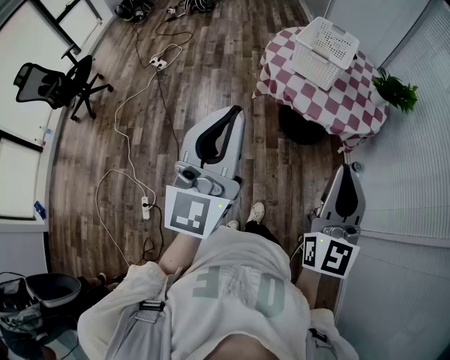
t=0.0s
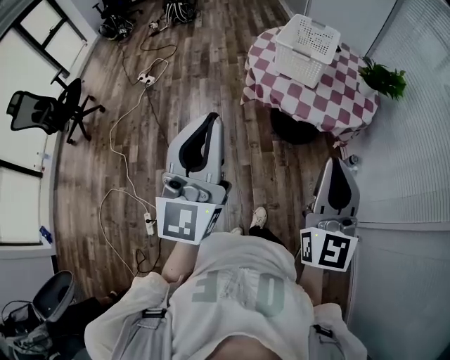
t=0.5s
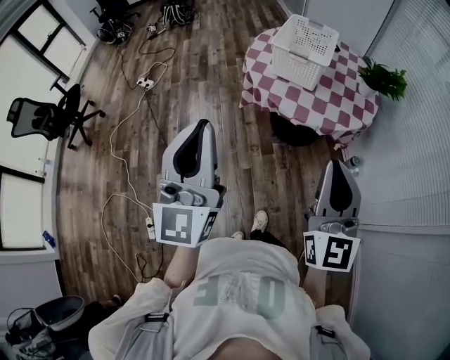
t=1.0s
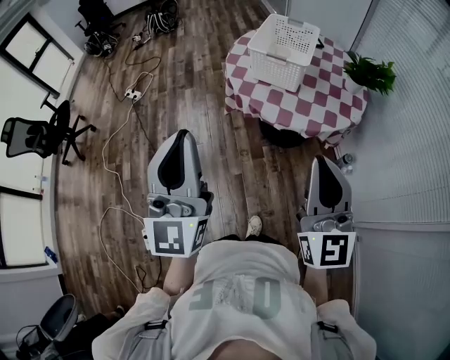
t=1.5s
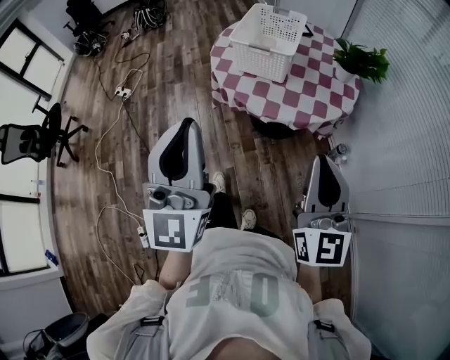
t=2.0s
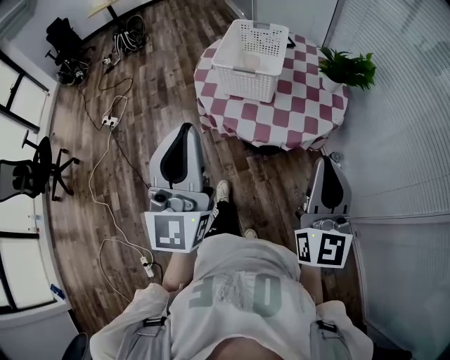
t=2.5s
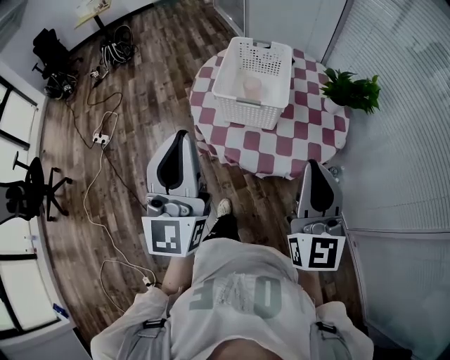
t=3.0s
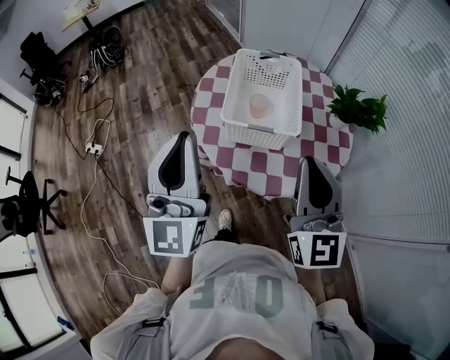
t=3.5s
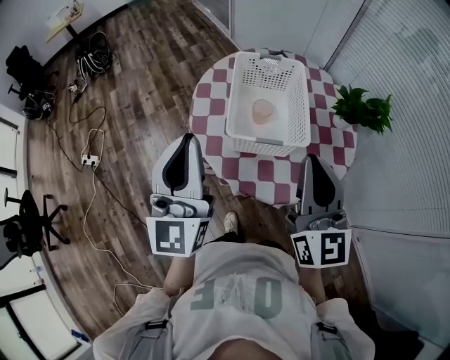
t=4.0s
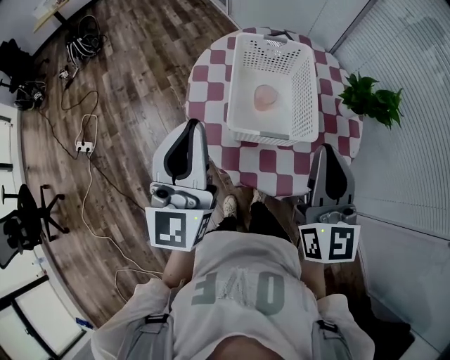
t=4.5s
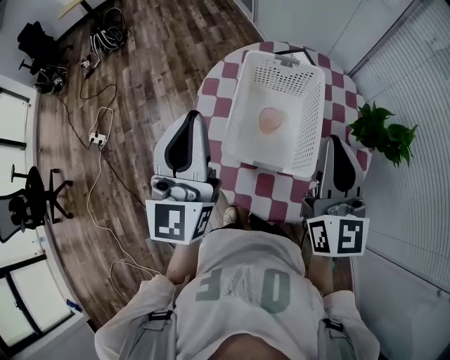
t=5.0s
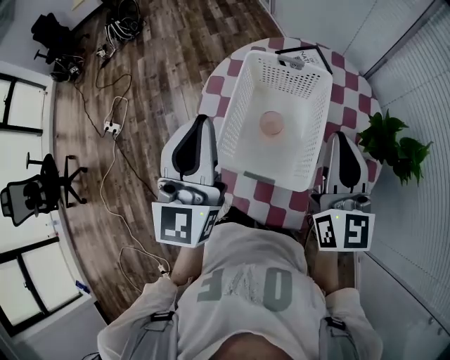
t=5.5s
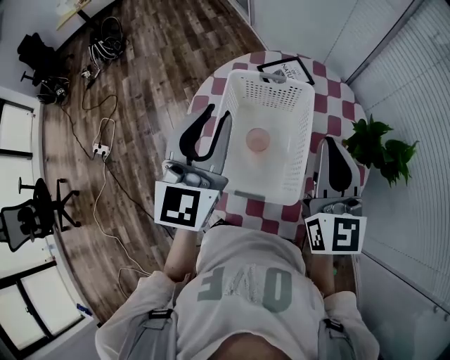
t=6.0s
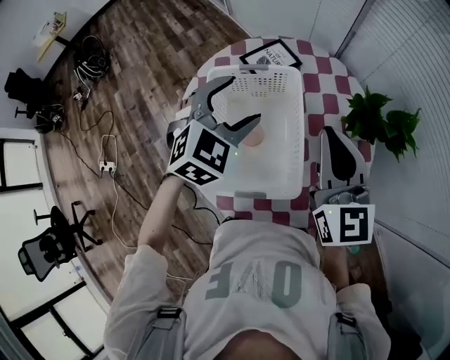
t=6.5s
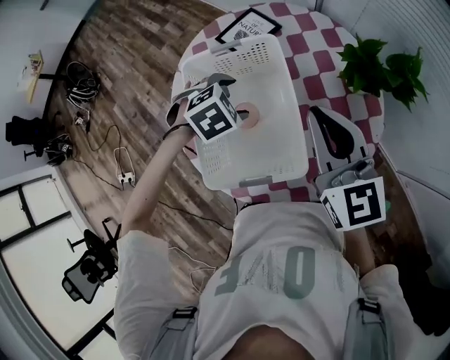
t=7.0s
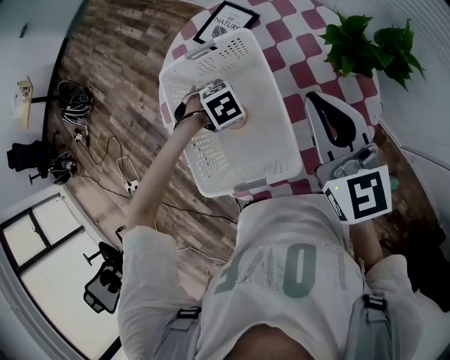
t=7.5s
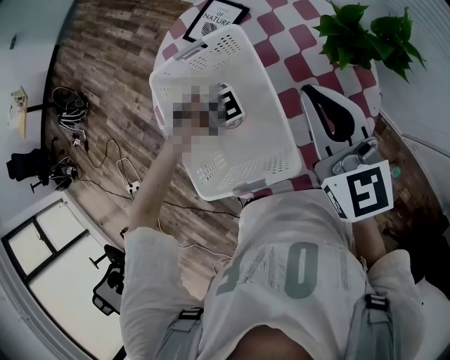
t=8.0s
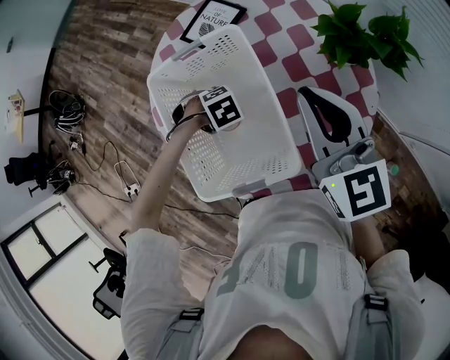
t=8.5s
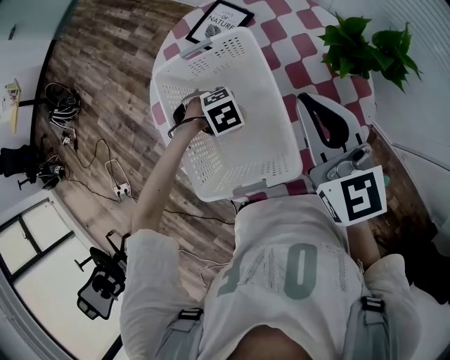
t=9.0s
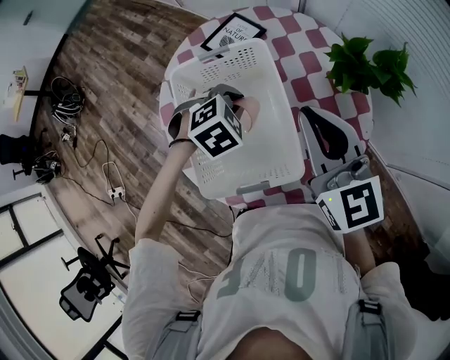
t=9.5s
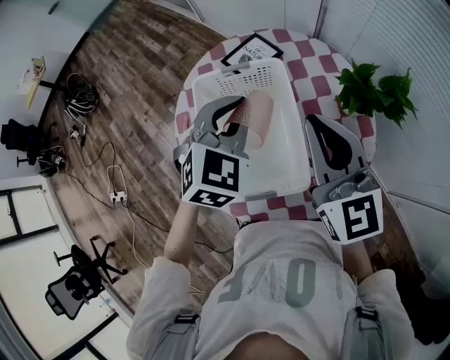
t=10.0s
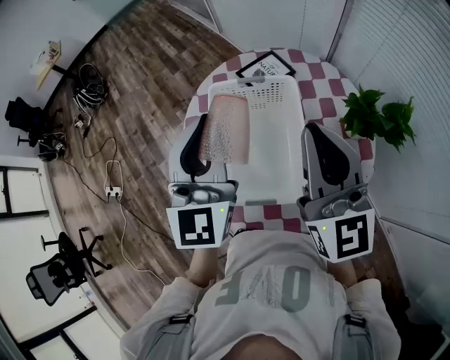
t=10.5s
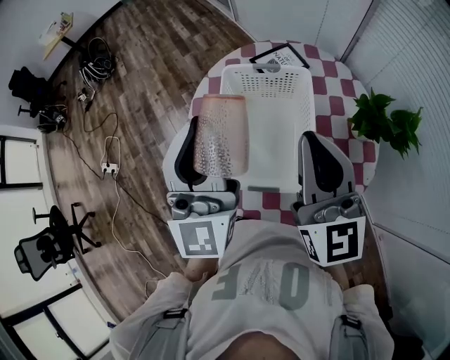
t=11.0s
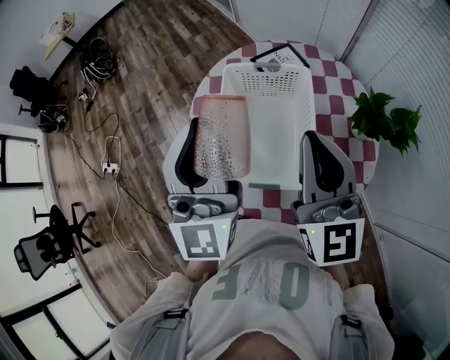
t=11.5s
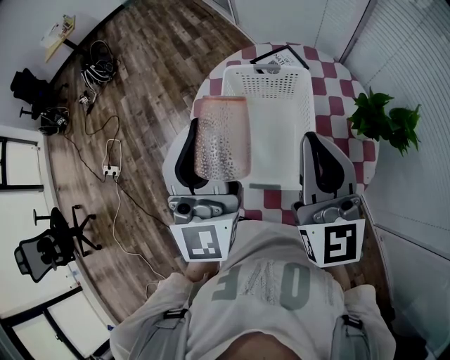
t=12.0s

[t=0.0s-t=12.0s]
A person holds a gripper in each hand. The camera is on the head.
t=0.0s to t=2.0s: The left gripper shifts roughly 15 cm forward and to the right; the right gripper goes about 15 cm to the right and forward.
t=2.0s to t=4.0s: The left gripper is displaced forward by approximately 40 cm. Meanwhile the right gripper travels forward and to the left by about 35 cm.
t=4.0s to t=6.0s: The two grippers go about 25 cm forward and to the right. The left gripper swivels about 20 degrees.
t=6.0s to t=8.0s: The right gripper goes roughly 10 cm downward, while the left gripper goes about 40 cm downward, angles its fingers downward, by approximately 80 degrees, and opens its fingers.
t=8.0s to t=10.0s: The left gripper goes some 30 cm upward, points its fingers roughly 50 degrees further upward, and closes its fingers. The right gripper travels upward by roughly 5 cm.
t=10.0s to t=12.0s: The right gripper heads to the left, covering approximately 5 cm, while the left gripper shifts approximately 20 cm upward, to the left and backward, and angles its fingers upward, by about 50 degrees.

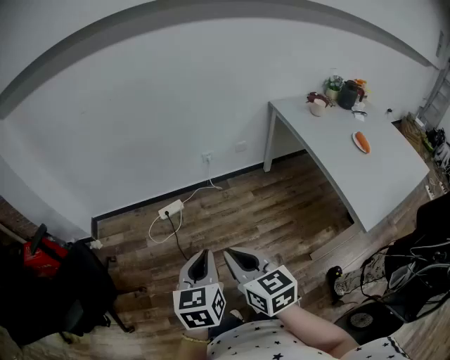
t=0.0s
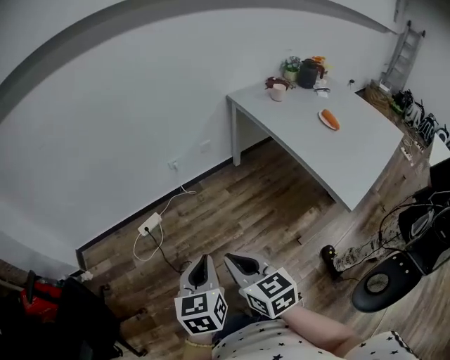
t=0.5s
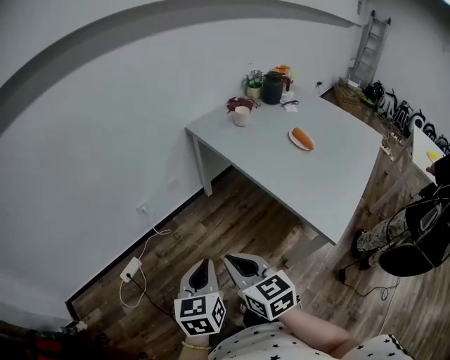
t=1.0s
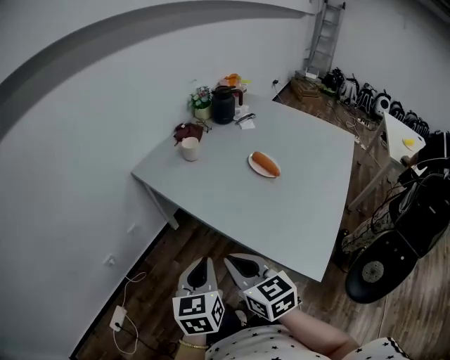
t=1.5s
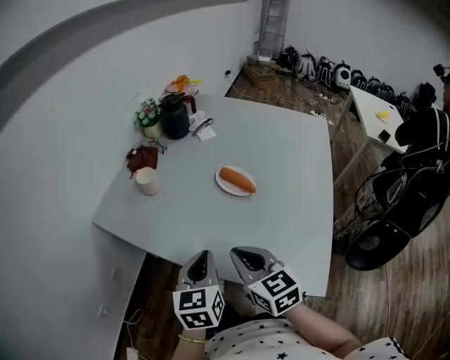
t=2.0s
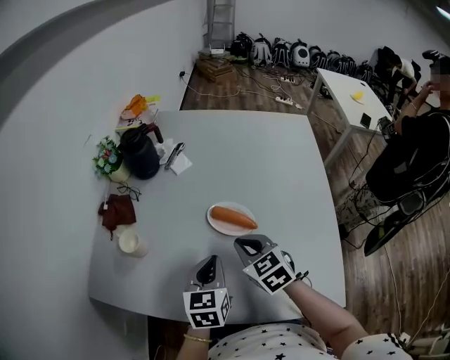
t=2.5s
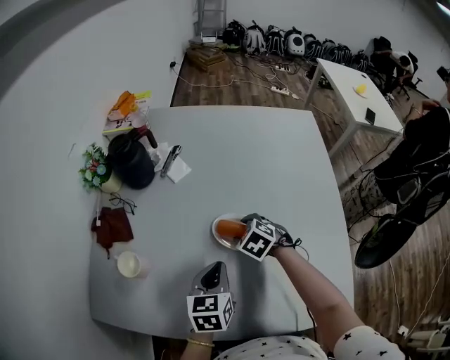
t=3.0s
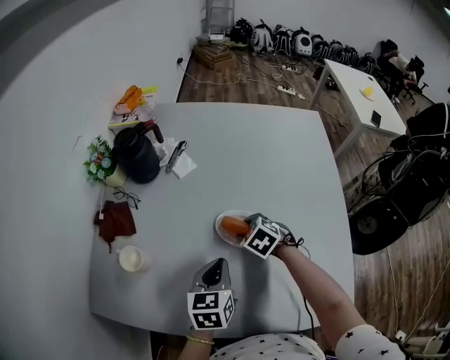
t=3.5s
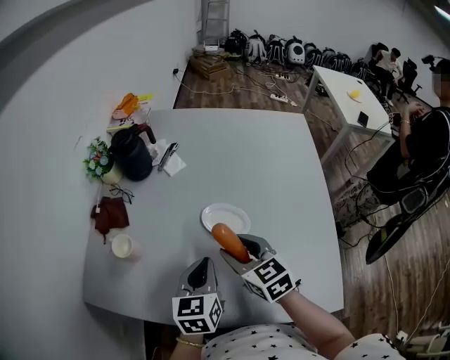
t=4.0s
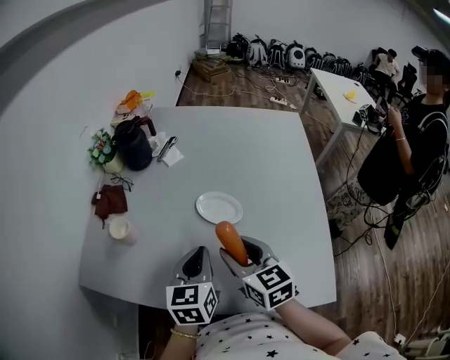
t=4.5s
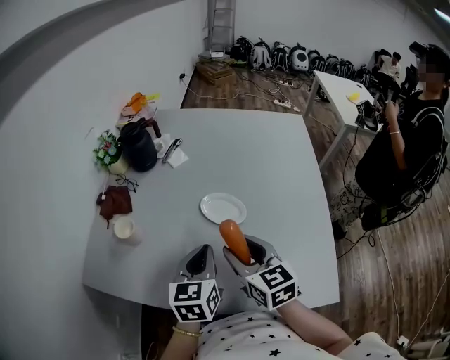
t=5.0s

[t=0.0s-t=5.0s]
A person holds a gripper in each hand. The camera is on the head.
t=0.0s to t=2.5s: The pair of grippers is taken roughly 90 cm. The right gripper swivels roughly 60 degrees. The left gripper turns by about 70 degrees.
t=2.5s to t=5.0s: The left gripper goes forward and returns, approximately 5 cm each way. Meanwhile the right gripper travels backward by some 5 cm, travels downward and back again, roughly 10 cm each way, swivels roughly 20 degrees, and opens.

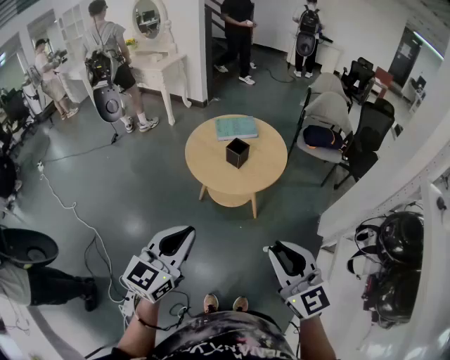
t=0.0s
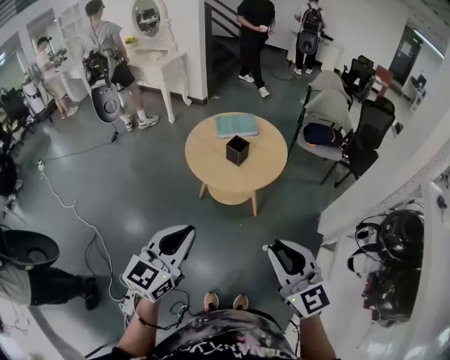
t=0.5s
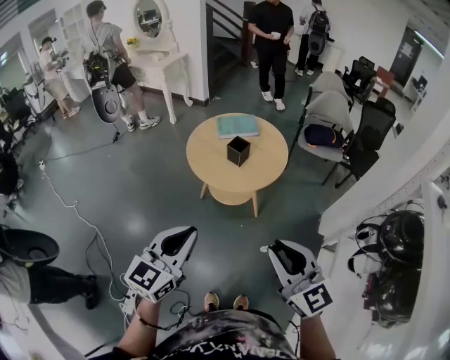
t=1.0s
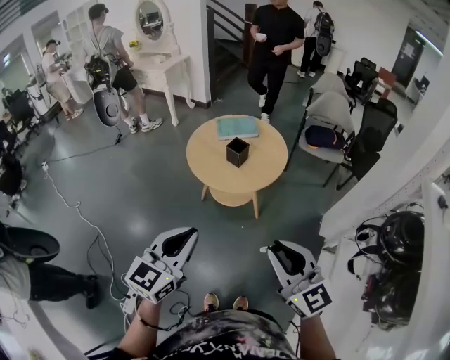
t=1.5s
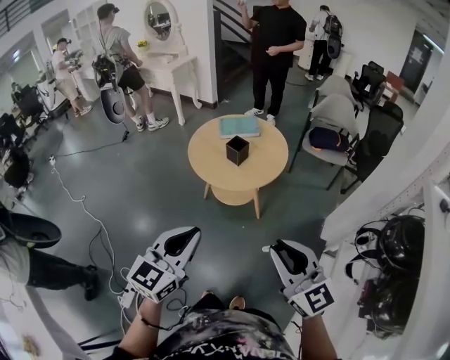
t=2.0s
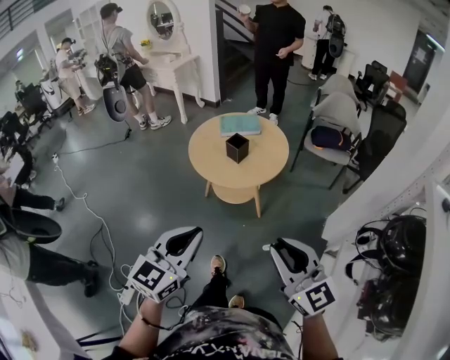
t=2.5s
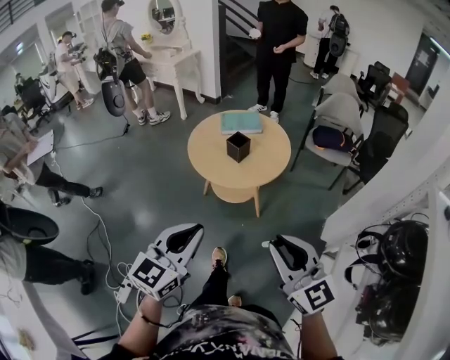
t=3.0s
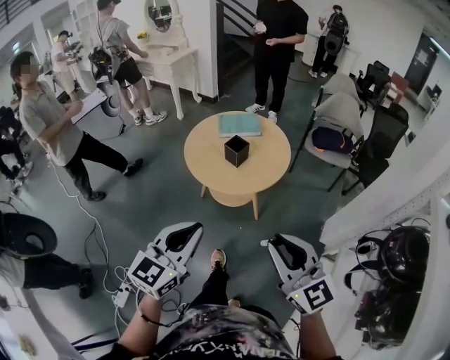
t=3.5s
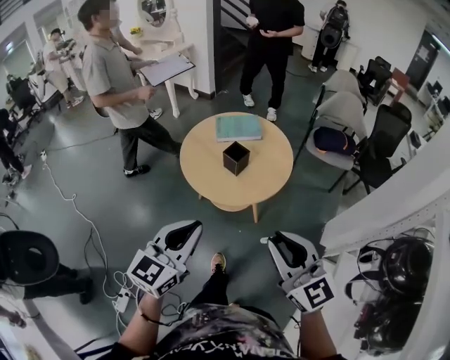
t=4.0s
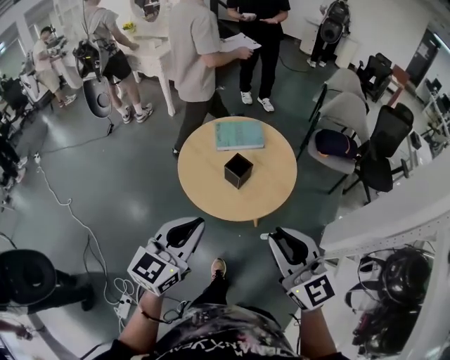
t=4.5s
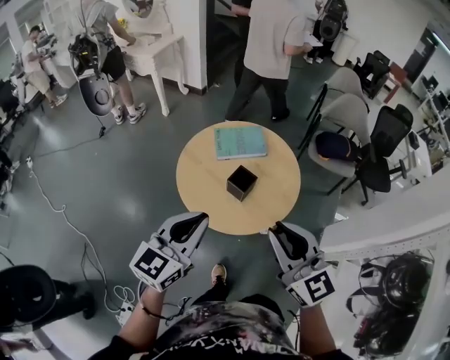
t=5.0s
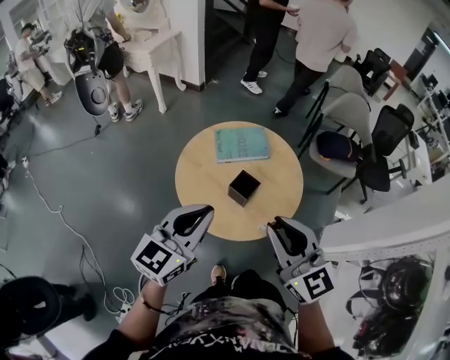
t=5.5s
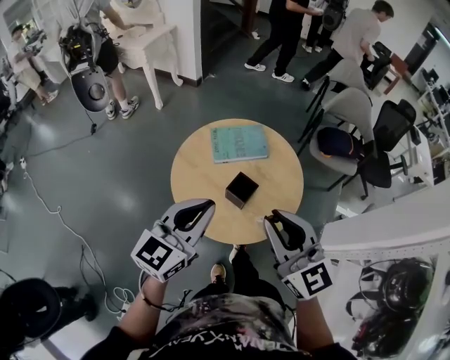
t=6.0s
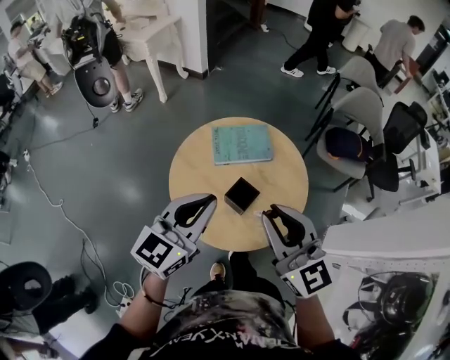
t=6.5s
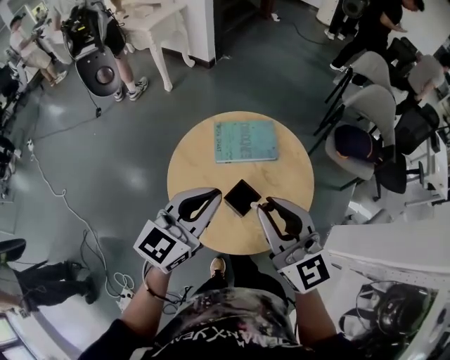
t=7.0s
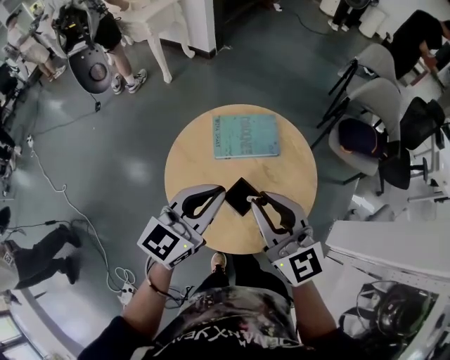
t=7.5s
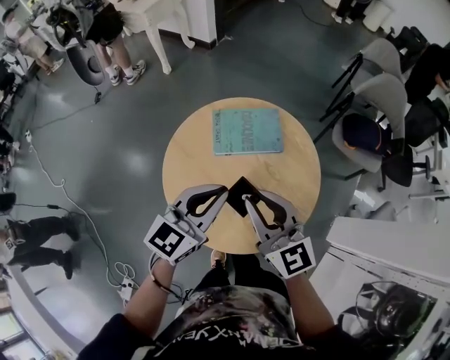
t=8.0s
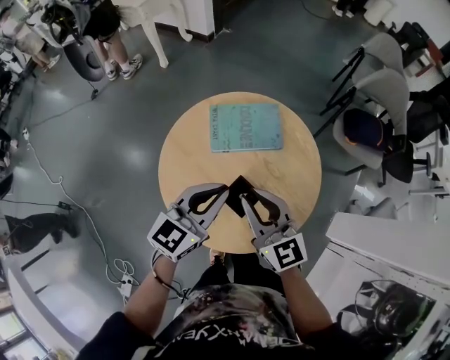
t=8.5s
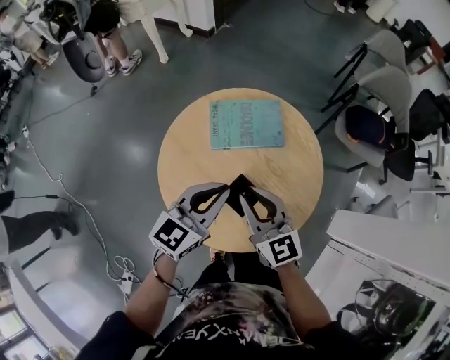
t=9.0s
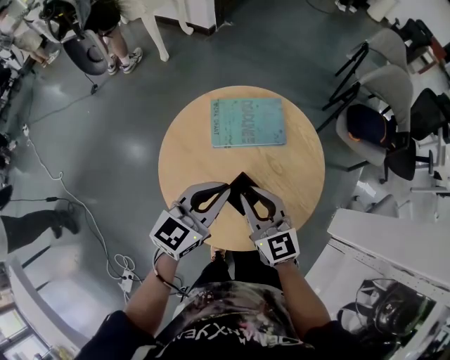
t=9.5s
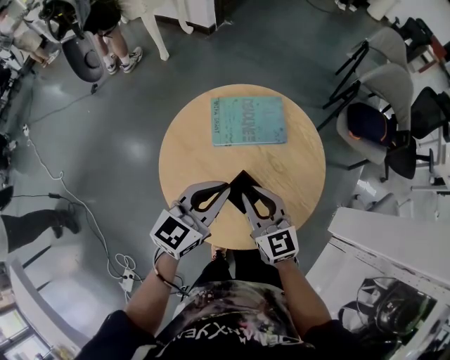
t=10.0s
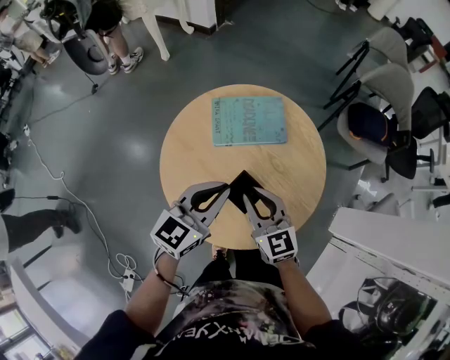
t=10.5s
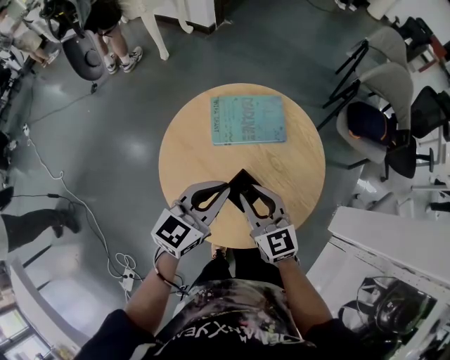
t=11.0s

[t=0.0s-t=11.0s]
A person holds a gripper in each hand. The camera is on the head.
t=0.0s to t=2.0s: The two grippers go roughly 5 cm to the right.
t=2.0s to t=3.5s: The grippers both shift forward by approximately 5 cm.
t=3.5s to t=5.5s: The two grippers go some 35 cm forward.
t=5.5s to t=7.5s: The left gripper heads forward and downward, covering approximately 20 cm. Meanwhile the right gripper travels forward by roughly 20 cm.
t=7.5s to t=9.0s: Both grippers move downward, some 10 cm.
t=9.0s to t=11.0s: The grippers make only small movements.
